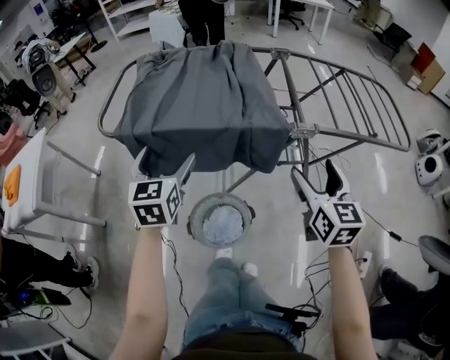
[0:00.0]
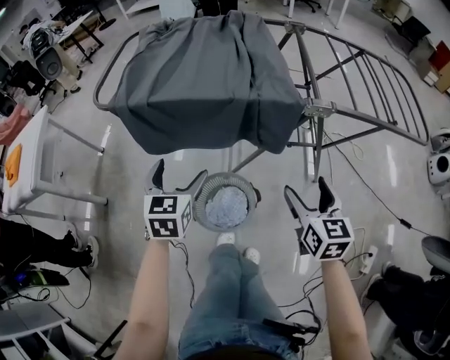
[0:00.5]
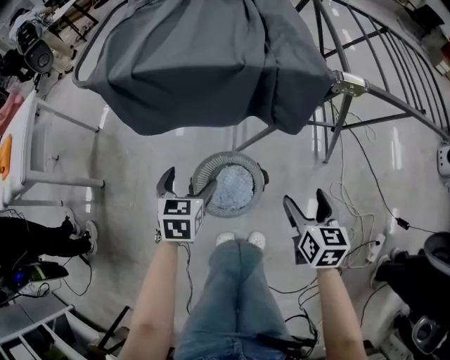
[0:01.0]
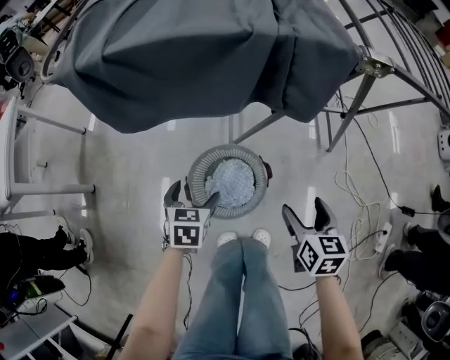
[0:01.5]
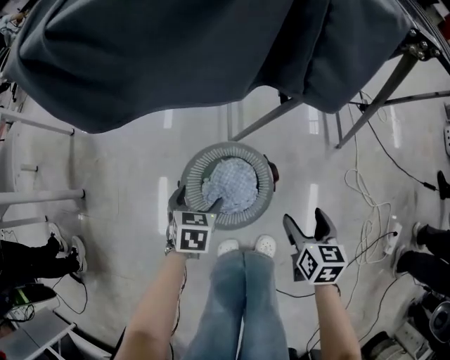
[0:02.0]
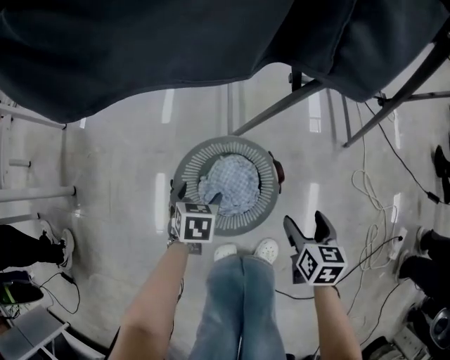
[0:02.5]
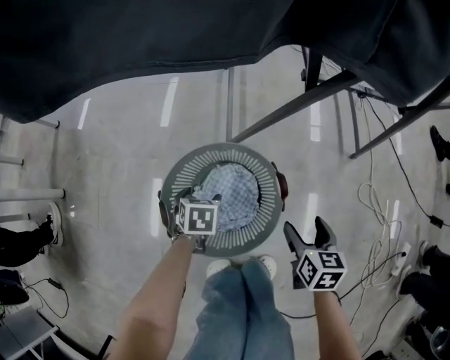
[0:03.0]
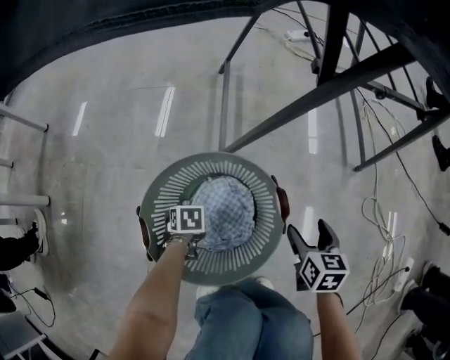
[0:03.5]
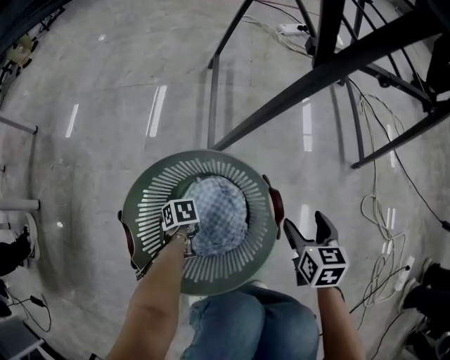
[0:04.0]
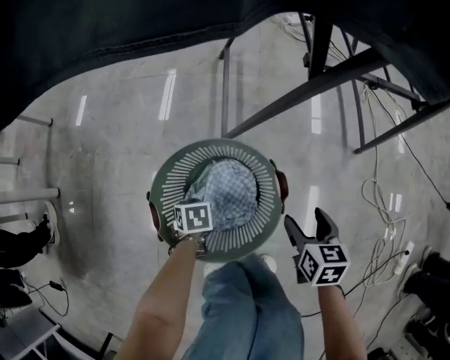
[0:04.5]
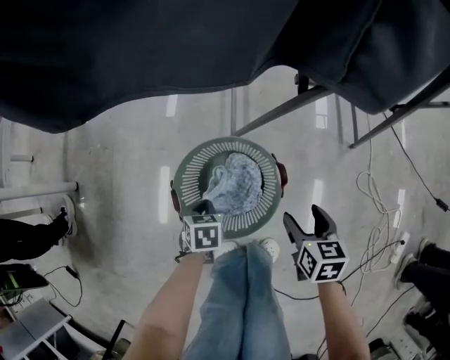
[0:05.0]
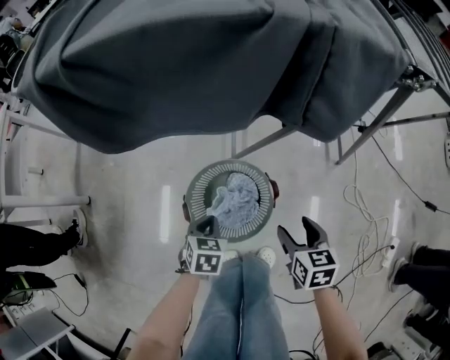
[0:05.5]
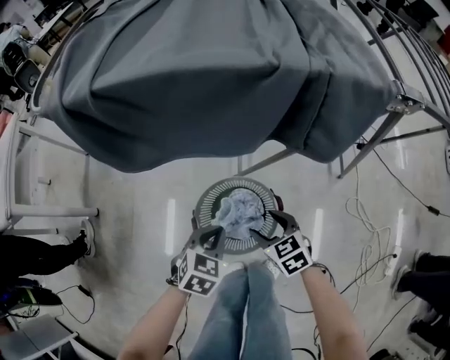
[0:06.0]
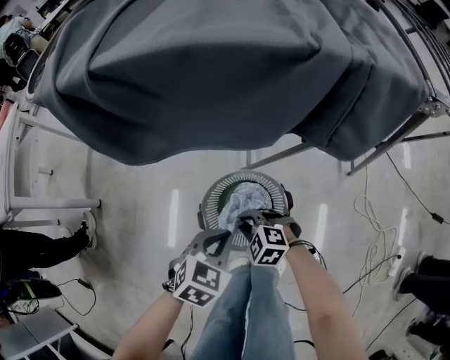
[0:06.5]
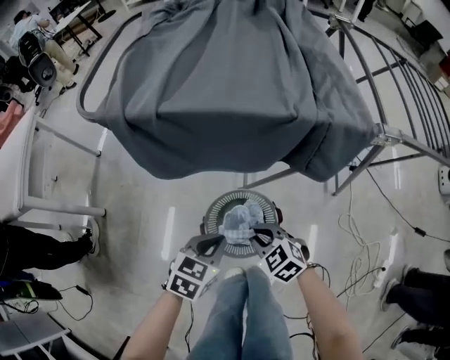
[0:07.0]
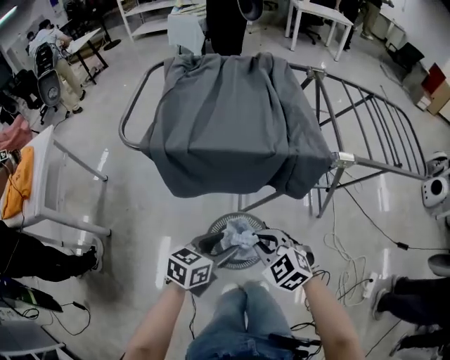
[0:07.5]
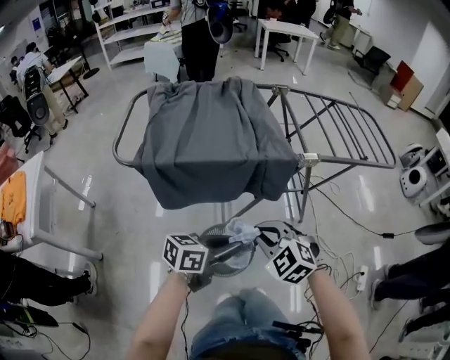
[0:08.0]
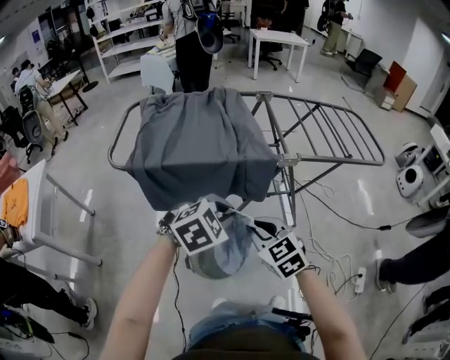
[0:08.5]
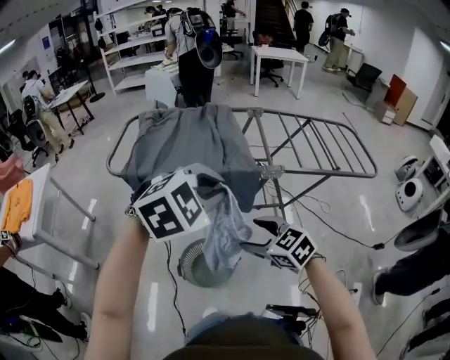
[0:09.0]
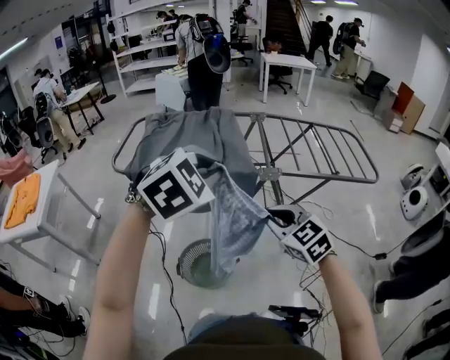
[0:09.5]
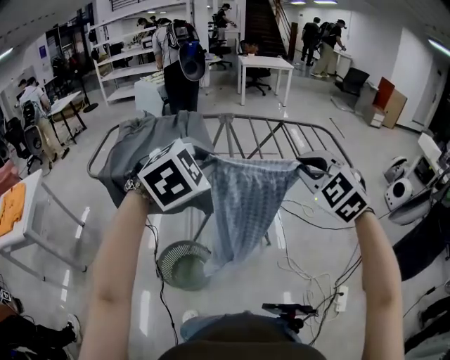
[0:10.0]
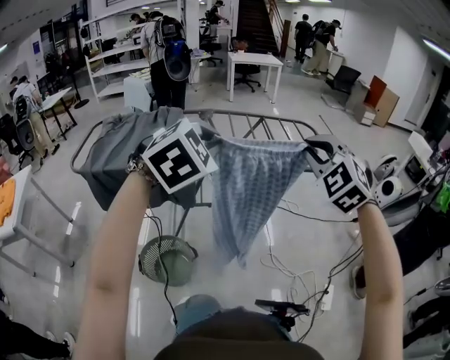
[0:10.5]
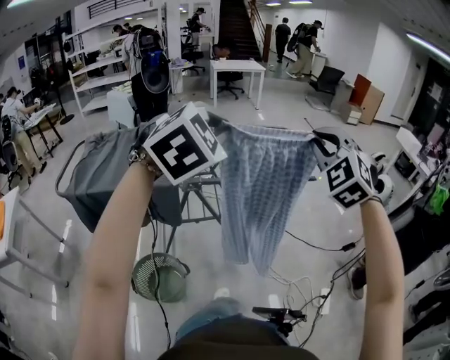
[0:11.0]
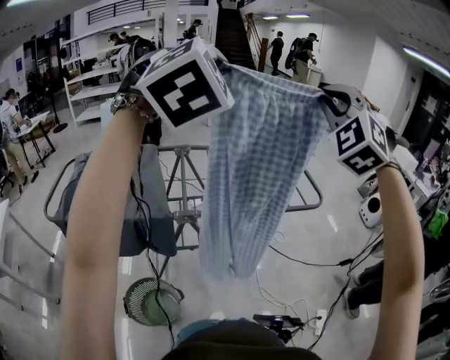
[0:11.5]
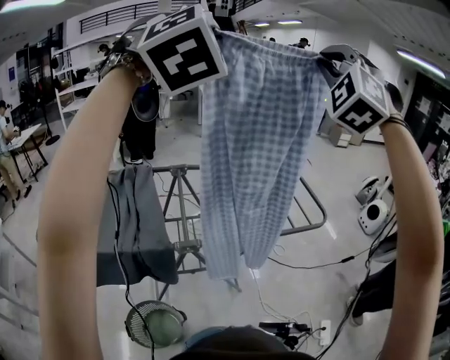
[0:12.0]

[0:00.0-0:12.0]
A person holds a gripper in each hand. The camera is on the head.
0:00.0 to 0:02.0: The grippers both shift downward by about 50 cm. The right gripper turns by roughly 30 degrees; the left gripper tilts its fingers roughly 40 degrees downward.
0:02.0 to 0:04.0: The two grippers go some 35 cm downward. The left gripper rotates about 40 degrees, and closes.
0:04.0 to 0:06.0: The left gripper travels upward by roughly 50 cm, and changes its angle by about 60 degrees, while the right gripper moves upward, roughly 30 cm, and changes its angle by approximately 30 degrees.
0:06.0 to 0:08.0: Both grippers travel together upward, roughly 35 cm. The left gripper angles its fingers upward, by some 40 degrees, while the right gripper turns by some 40 degrees, and closes.
0:08.0 to 0:10.0: The left gripper travels upward and to the right by approximately 35 cm, and rotates around the line of its fingers by some 70 degrees, clockwise from behind. Meanwhile the right gripper moves to the right and upward, about 40 cm, turns by approximately 20 degrees, and opens, then closes once more.
0:10.0 to 0:12.0: Both grippers travel together upward and forward, approximately 40 cm. The left gripper tilts its fingers about 40 degrees upward; the right gripper angles its fingers upward, by some 30 degrees.

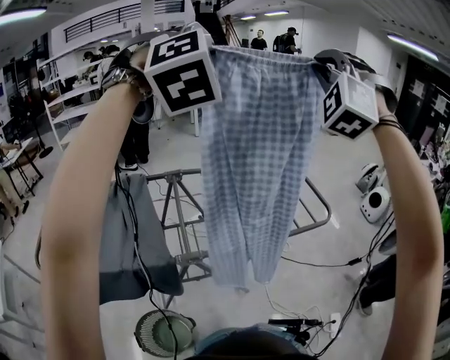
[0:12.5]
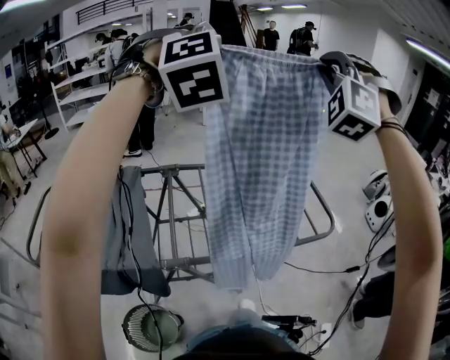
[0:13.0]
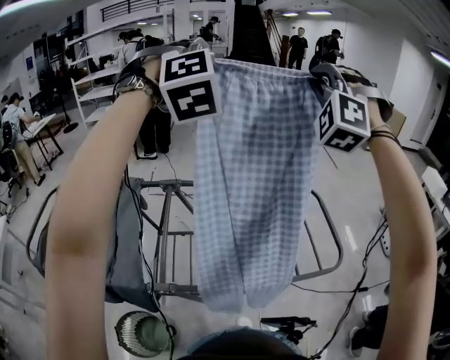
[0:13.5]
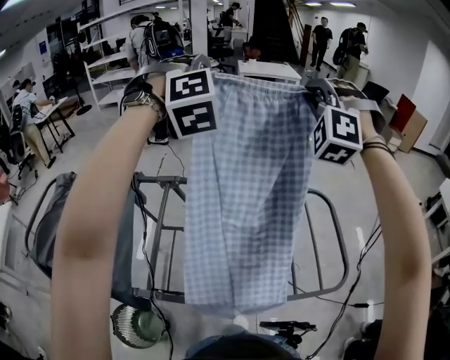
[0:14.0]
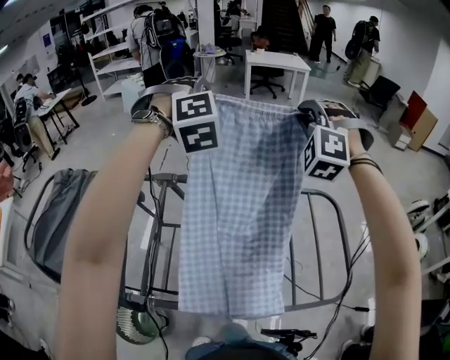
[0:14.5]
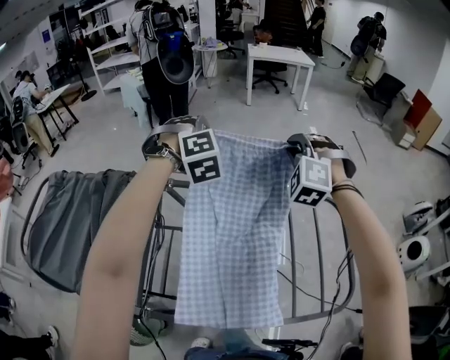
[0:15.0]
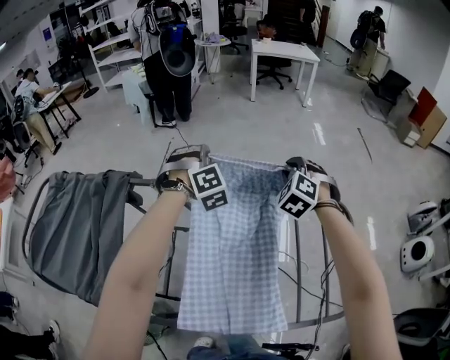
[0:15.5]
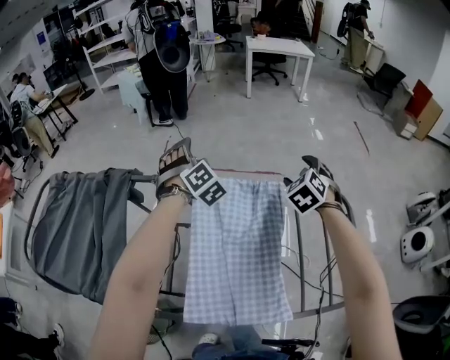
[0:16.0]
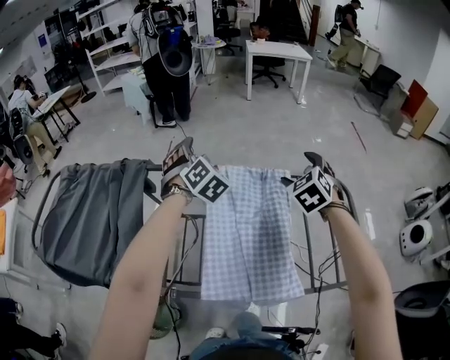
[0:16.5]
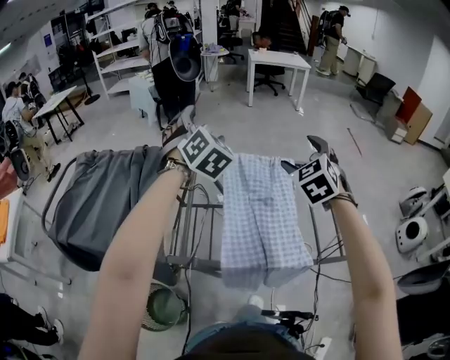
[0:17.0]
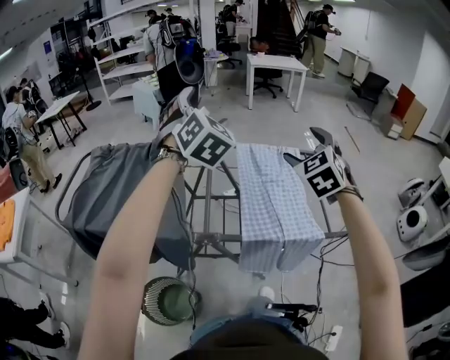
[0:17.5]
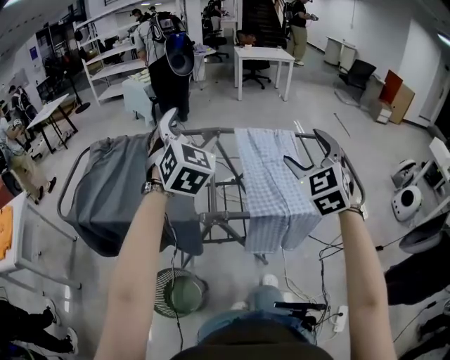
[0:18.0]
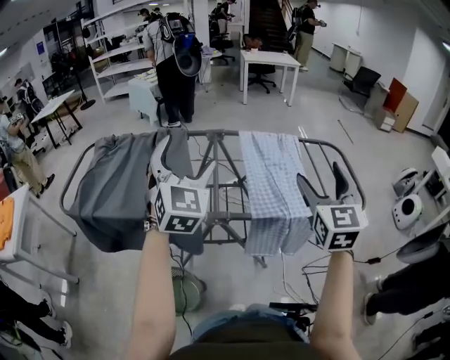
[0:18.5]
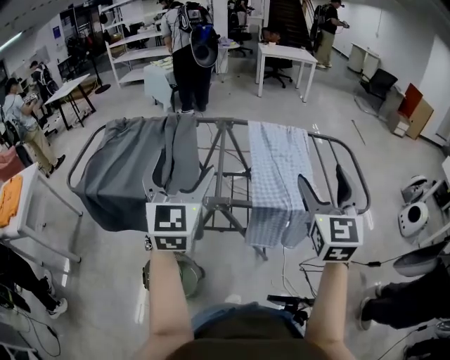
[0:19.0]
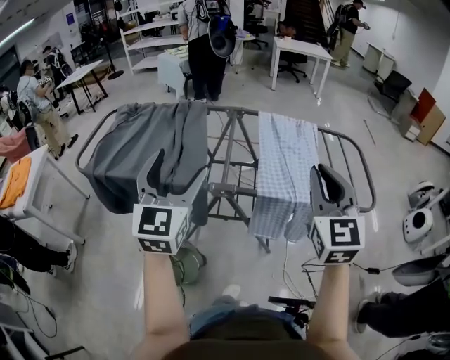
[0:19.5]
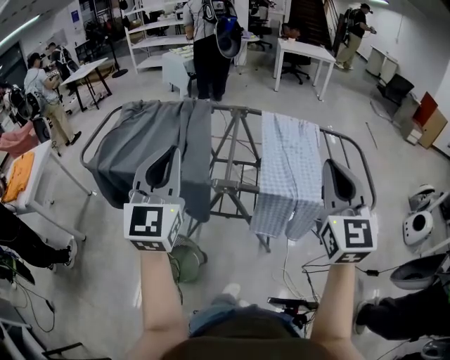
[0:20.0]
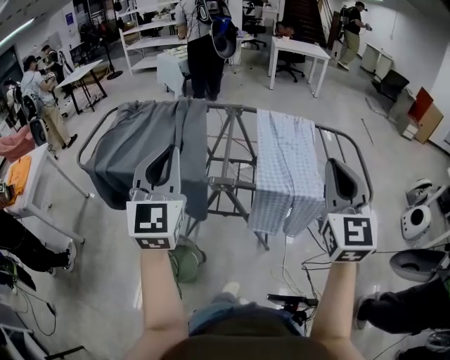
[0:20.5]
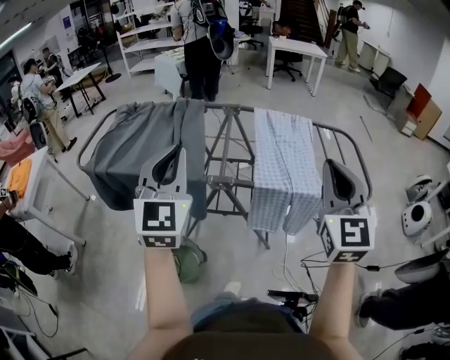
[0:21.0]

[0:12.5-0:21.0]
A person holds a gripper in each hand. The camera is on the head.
0:12.5 to 0:14.5: The two grippers go approximately 50 cm forward and downward. The right gripper swivels about 30 degrees; the left gripper turns by approximately 30 degrees.
0:14.5 to 0:16.5: The grippers both shift downward by roughly 20 cm. The right gripper rolls clockwise, seen from behind, by roughly 50 degrees, and opens. Meanwhile the left gripper rotates approximately 40 degrees, and opens up.
0:16.5 to 0:19.0: The pair of grippers is taken backward, approximately 50 cm. The left gripper tilts its fingers about 30 degrees upward, while the right gripper angles its fingers upward, by approximately 40 degrees.
0:19.0 to 0:21.0: The two grippers go some 5 cm backward. The left gripper closes its fingers, while the right gripper closes.

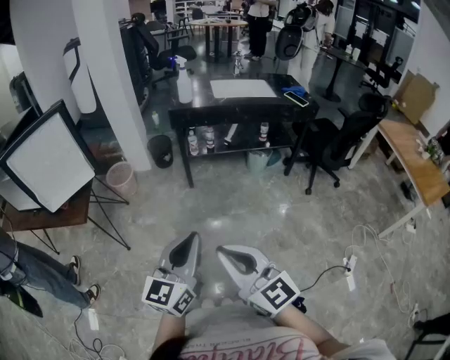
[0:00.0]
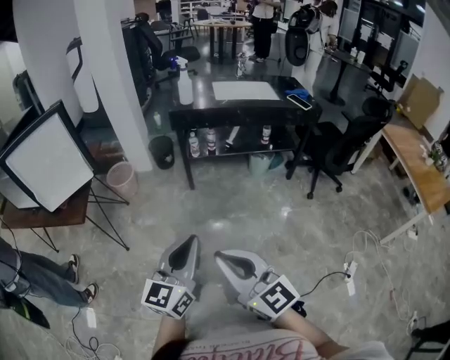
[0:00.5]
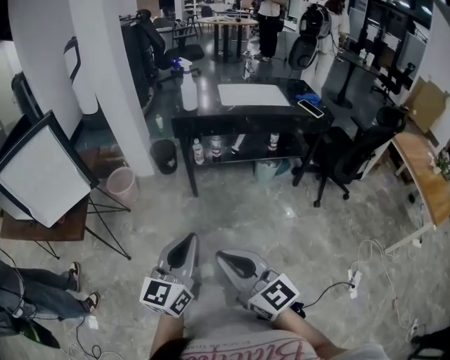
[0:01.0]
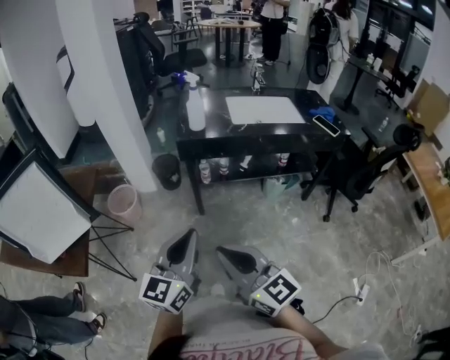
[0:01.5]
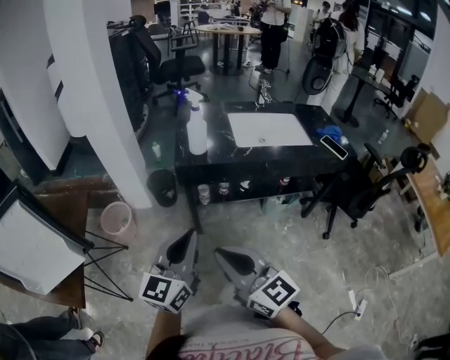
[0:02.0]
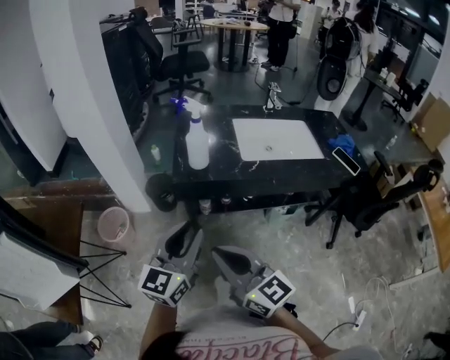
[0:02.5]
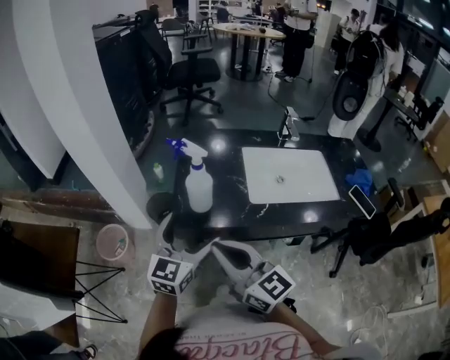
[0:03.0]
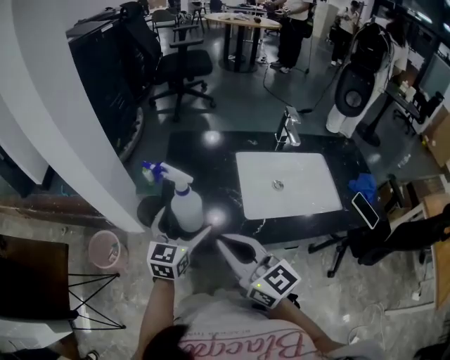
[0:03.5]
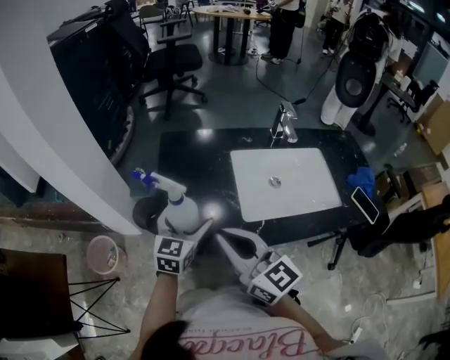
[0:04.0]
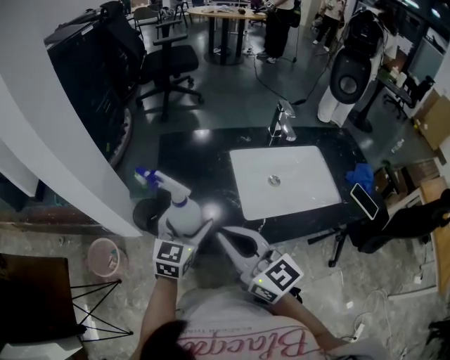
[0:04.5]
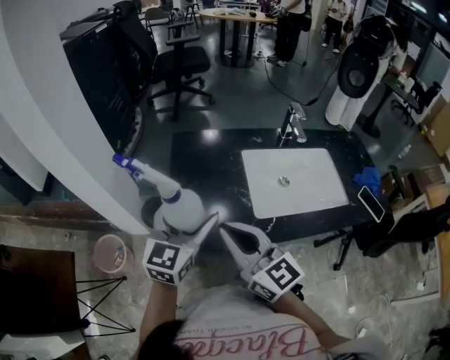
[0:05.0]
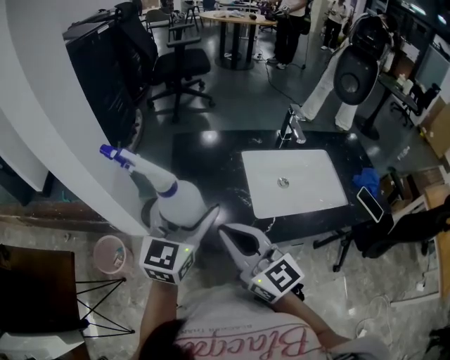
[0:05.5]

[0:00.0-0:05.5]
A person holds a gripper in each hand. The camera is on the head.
0:00.0 to 0:02.0: Both grippers move forward, roughly 35 cm.
0:02.0 to 0:03.5: The two grippers go approximately 35 cm forward. The left gripper opens its fingers.
0:03.5 to 0:05.5: The left gripper is displaced upward by roughly 15 cm.
